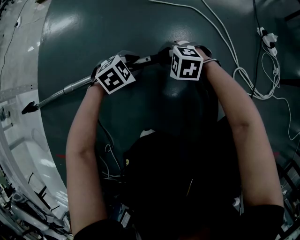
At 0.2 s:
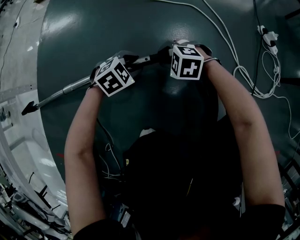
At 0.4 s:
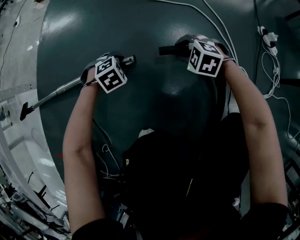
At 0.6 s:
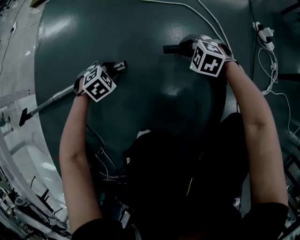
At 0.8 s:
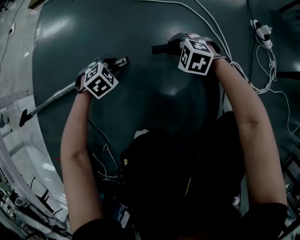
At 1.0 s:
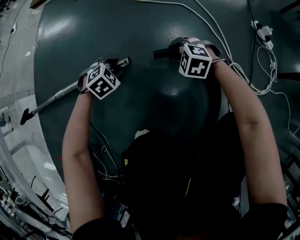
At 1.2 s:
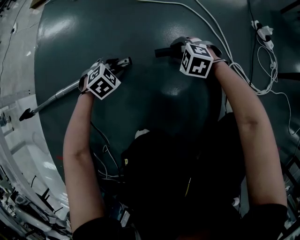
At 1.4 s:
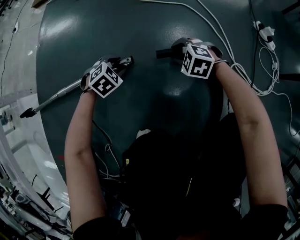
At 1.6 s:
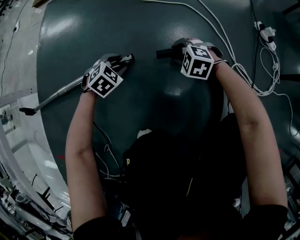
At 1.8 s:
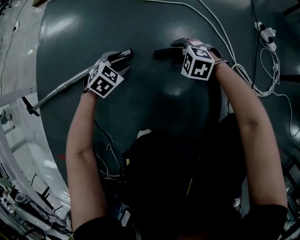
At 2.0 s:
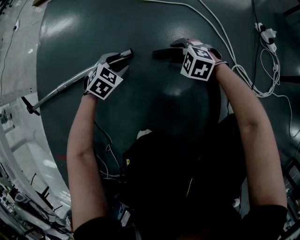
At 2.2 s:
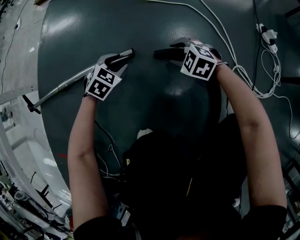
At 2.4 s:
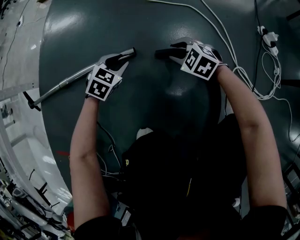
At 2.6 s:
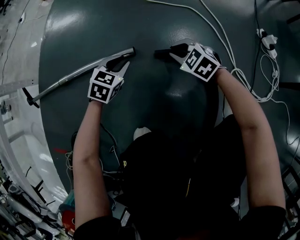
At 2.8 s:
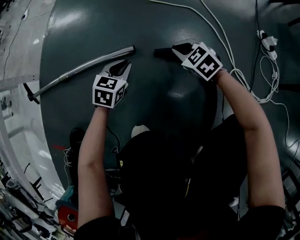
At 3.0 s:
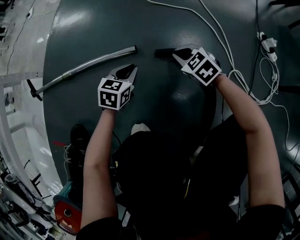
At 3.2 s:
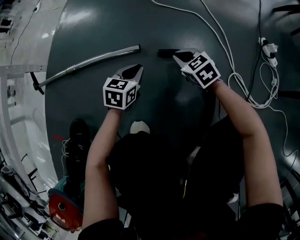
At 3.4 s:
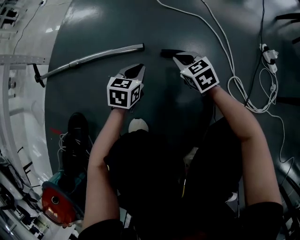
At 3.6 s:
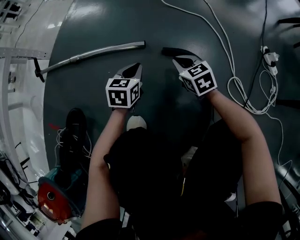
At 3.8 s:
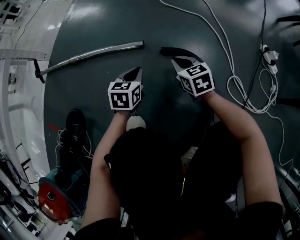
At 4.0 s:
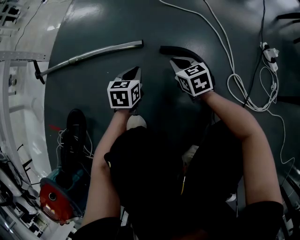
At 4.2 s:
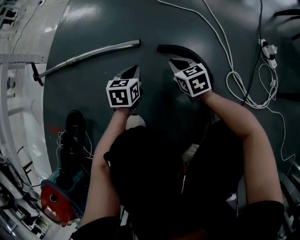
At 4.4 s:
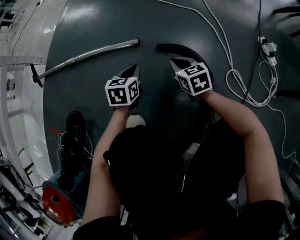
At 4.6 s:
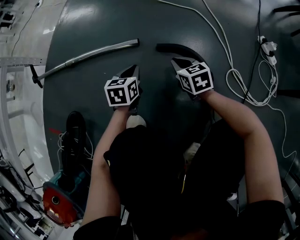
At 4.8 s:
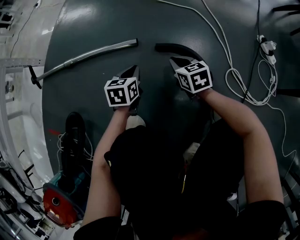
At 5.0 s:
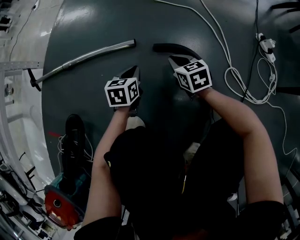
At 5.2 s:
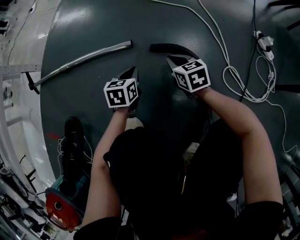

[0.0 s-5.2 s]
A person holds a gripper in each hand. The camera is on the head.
0.0 to 1.8 s: The right gripper changes place by some 10 cm, and opens its fingers.
1.8 to 3.4 s: The right gripper is displaced upward by roughly 10 cm, changes its angle by approximately 40 degrees, and closes. Meanwhile the left gripper moves backward and upward, roughly 10 cm, rolls counterclockwise, seen from behind, by approximately 50 degrees, and closes its fingers.
3.4 to 5.2 s: There are only small adjustments of the grippers.

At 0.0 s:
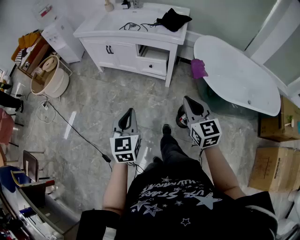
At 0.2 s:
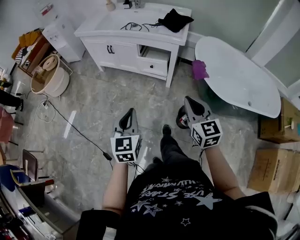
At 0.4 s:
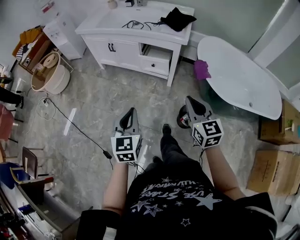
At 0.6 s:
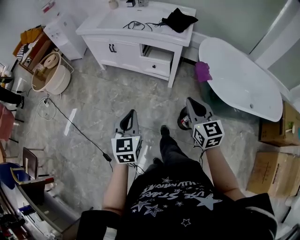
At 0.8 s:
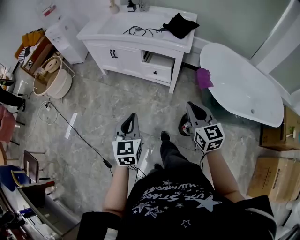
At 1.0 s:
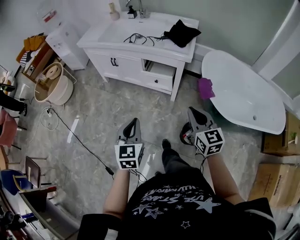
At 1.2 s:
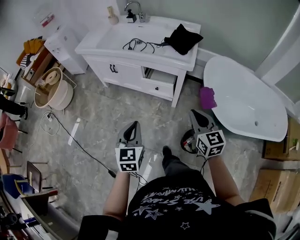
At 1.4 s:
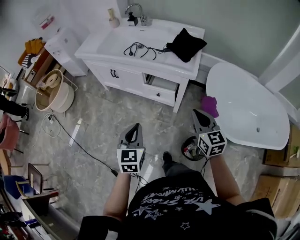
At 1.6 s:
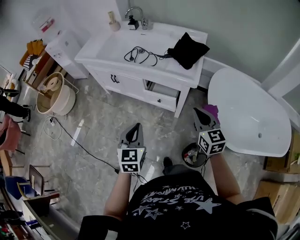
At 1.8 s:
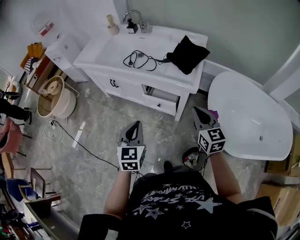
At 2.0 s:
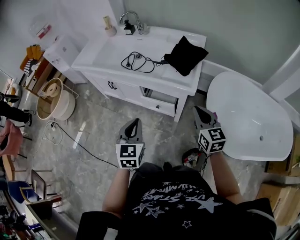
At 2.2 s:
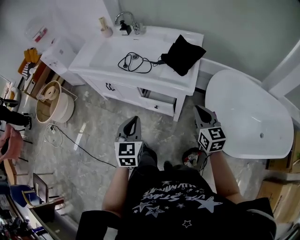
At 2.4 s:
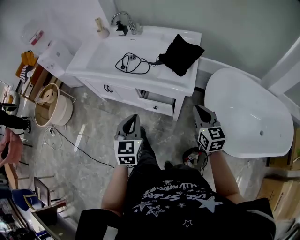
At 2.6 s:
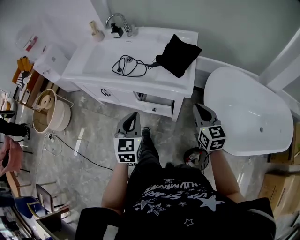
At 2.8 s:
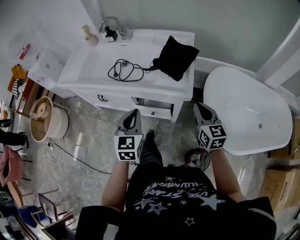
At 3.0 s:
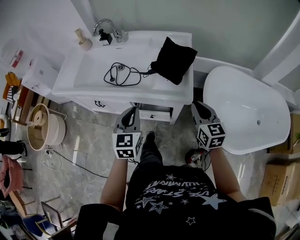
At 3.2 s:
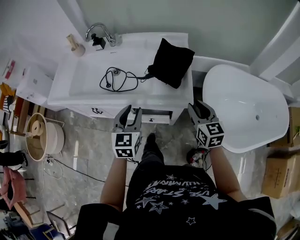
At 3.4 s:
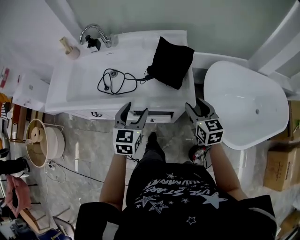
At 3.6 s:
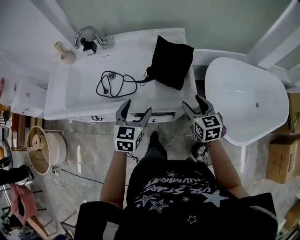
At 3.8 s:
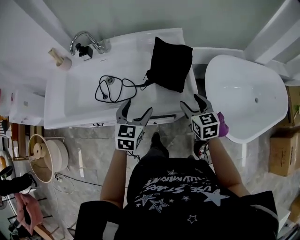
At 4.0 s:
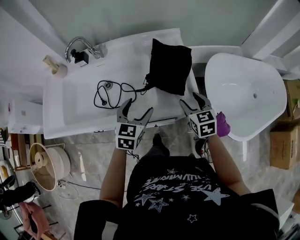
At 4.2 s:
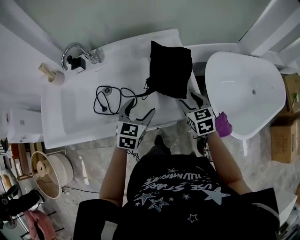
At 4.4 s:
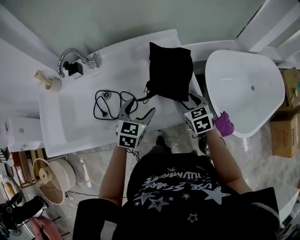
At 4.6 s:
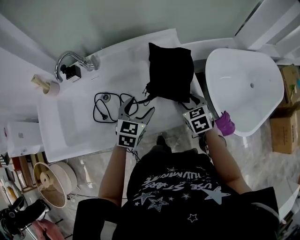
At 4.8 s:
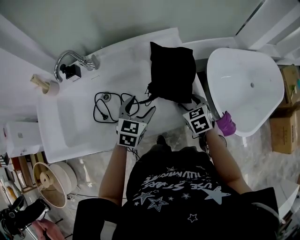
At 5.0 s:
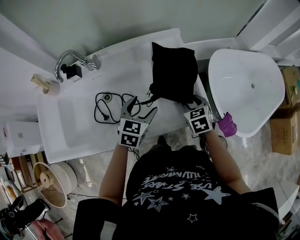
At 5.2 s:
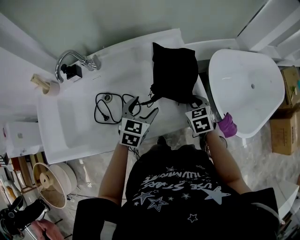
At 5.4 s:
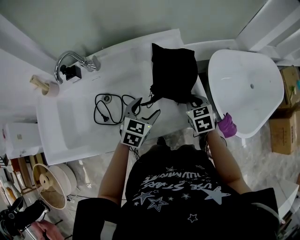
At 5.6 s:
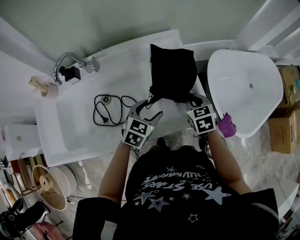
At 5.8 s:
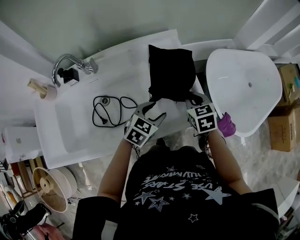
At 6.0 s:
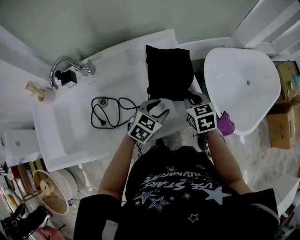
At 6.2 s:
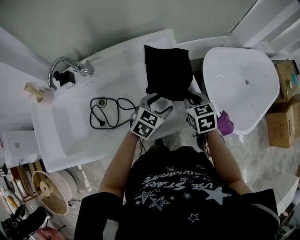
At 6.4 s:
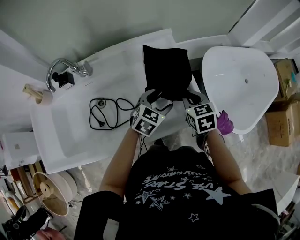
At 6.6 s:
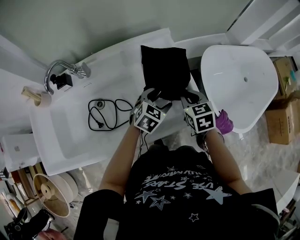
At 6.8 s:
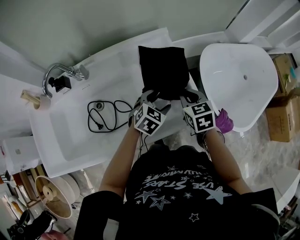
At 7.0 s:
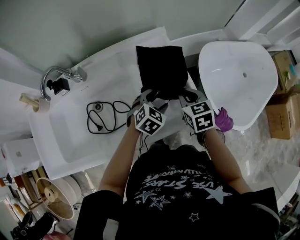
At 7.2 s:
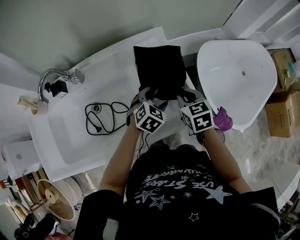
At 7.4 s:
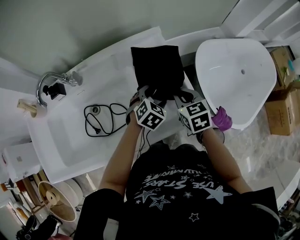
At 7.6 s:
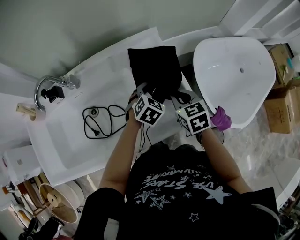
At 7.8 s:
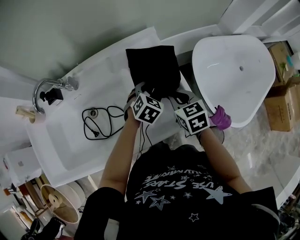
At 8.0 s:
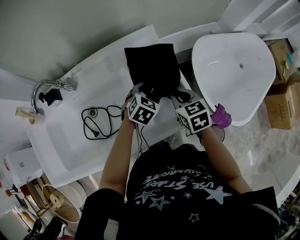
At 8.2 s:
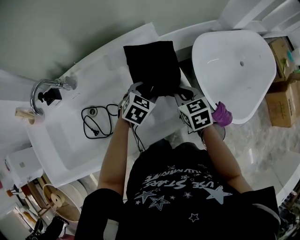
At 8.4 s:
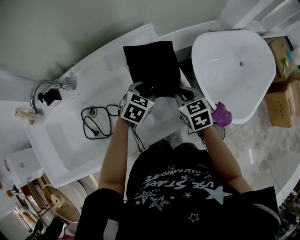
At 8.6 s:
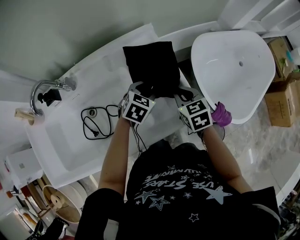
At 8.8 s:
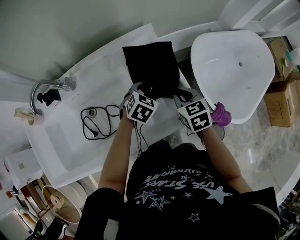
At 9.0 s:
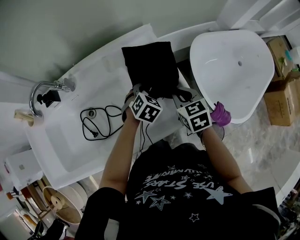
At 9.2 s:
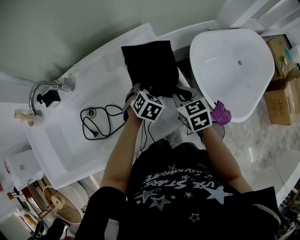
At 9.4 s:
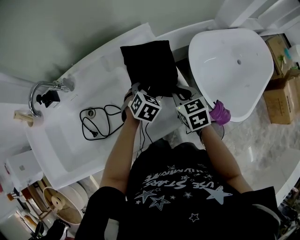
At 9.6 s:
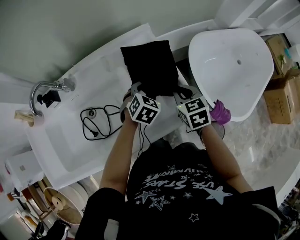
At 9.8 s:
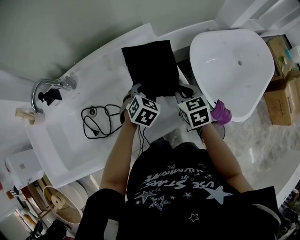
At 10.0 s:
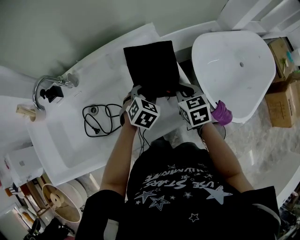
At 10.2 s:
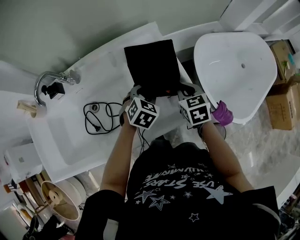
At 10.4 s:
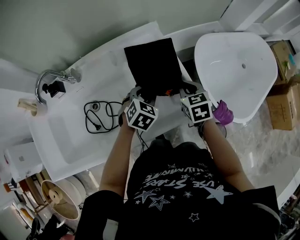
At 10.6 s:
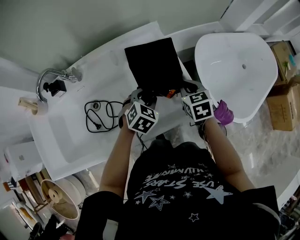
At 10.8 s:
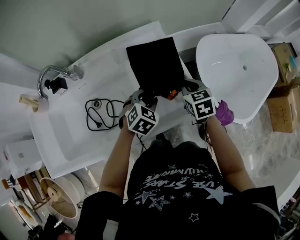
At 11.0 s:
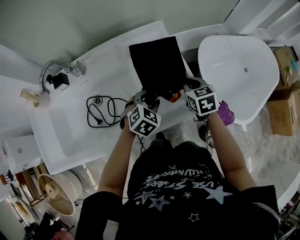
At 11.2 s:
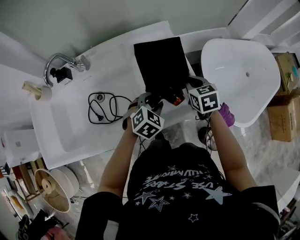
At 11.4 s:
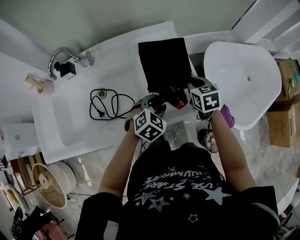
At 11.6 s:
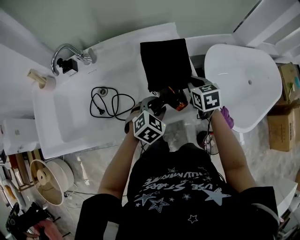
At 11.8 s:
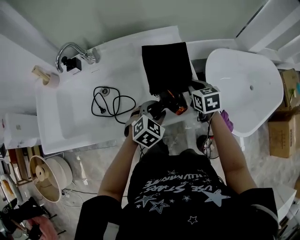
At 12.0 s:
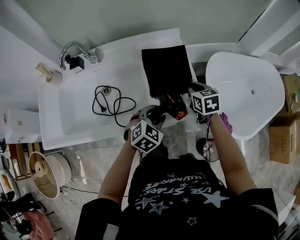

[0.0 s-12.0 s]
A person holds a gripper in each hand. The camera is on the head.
0.0 to 1.6 s: Both grippers move forward, approximately 30 cm.
1.6 to 3.0 s: The left gripper travels forward by roughly 25 cm. Meanwhile the right gripper travels forward by some 15 cm.
3.0 to 4.4 s: The right gripper changes place by roughly 20 cm, swivels about 30 degrees, and opens up, while the left gripper moves roughly 25 cm, changes its angle by some 40 degrees, and opens up.
4.4 to 6.0 s: The left gripper moves to the right, some 10 cm, rotates approximately 30 degrees, and closes its fingers. Meanwhile the right gripper closes its fingers.
6.0 to 7.6 s: The left gripper shifts some 10 cm forward, and opens up.
7.6 to 9.0 s: The left gripper closes its fingers.
9.0 to 10.4 s: The left gripper shifts by roughly 5 cm.
10.4 to 12.0 s: The left gripper travels backward by some 10 cm.

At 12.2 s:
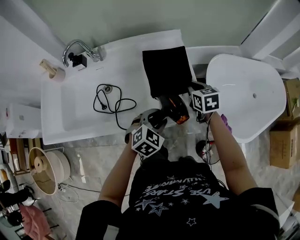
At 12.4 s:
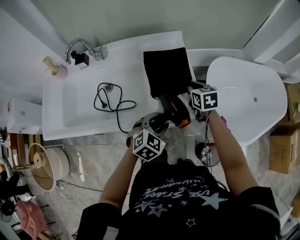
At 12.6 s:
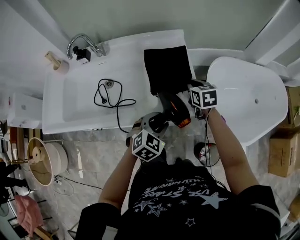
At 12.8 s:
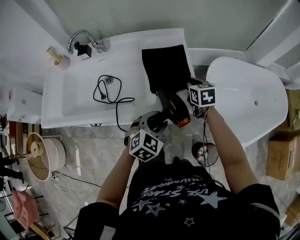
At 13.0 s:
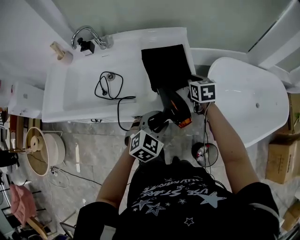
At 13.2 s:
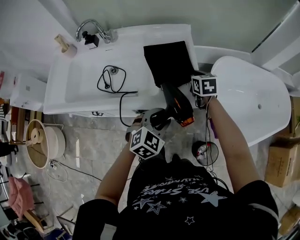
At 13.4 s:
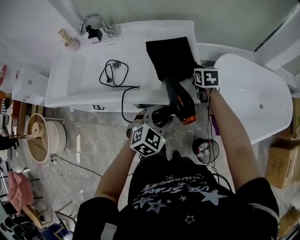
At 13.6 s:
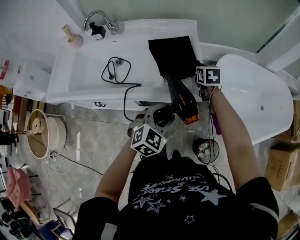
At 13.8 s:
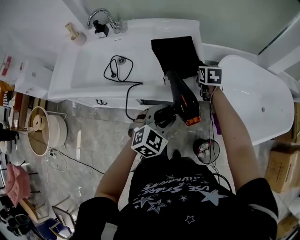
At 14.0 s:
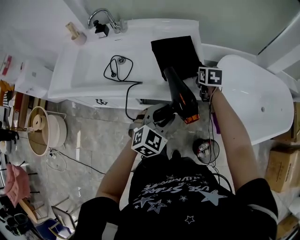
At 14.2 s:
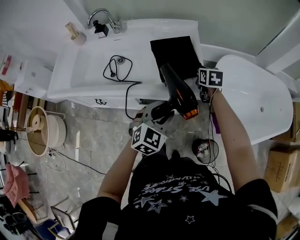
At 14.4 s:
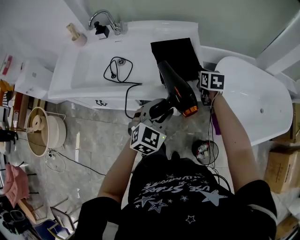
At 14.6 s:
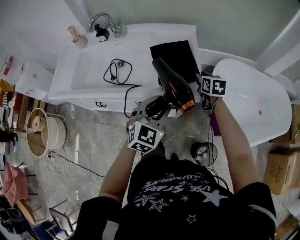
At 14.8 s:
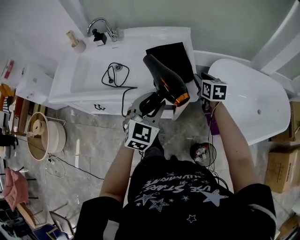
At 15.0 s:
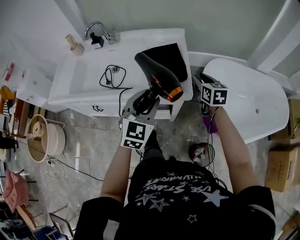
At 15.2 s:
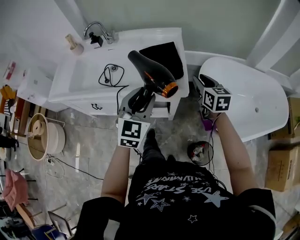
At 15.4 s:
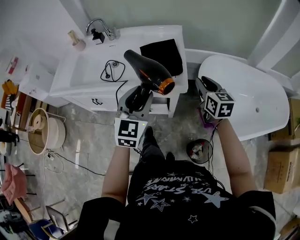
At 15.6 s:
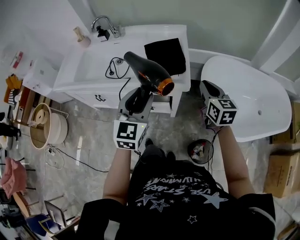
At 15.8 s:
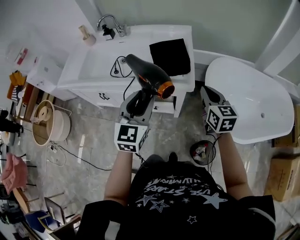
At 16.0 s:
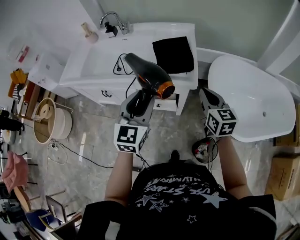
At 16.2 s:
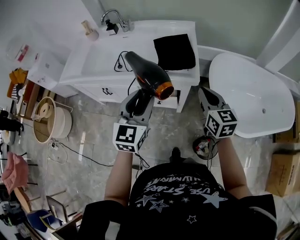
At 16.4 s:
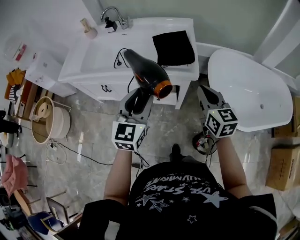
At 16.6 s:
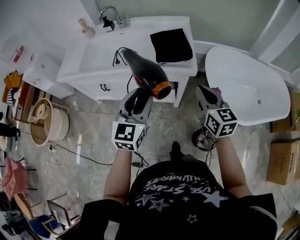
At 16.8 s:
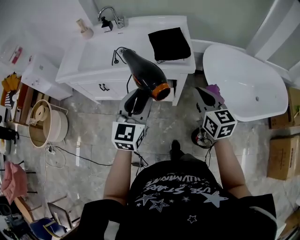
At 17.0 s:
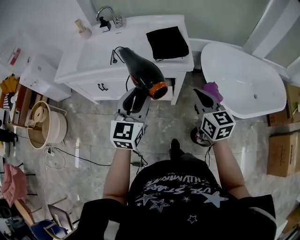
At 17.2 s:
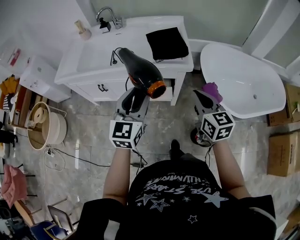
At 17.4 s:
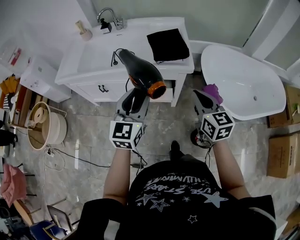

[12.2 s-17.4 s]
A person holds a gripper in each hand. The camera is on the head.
12.2 to 14.0 s: The left gripper shifts about 10 cm backward and to the right.
14.0 to 15.6 s: The right gripper goes some 20 cm backward, upward and to the right, turns by roughly 30 degrees, and opens, then closes again. The left gripper heads upward, covering roughly 10 cm, and changes its angle by about 30 degrees.
15.6 to 17.4 s: The left gripper moves backward and to the left, approximately 15 cm, while the right gripper heads backward and to the left, covering approximately 20 cm.

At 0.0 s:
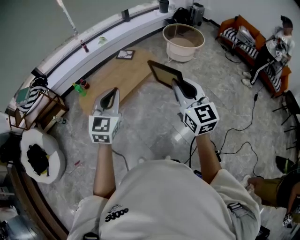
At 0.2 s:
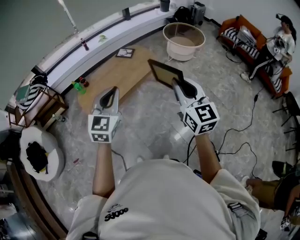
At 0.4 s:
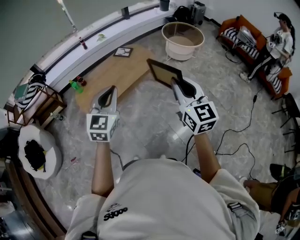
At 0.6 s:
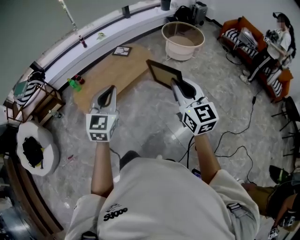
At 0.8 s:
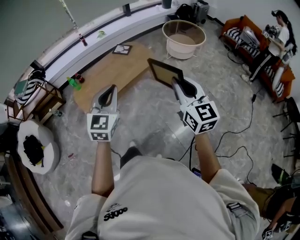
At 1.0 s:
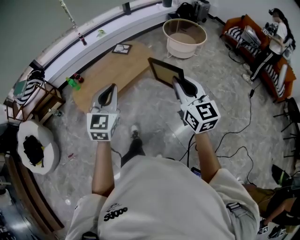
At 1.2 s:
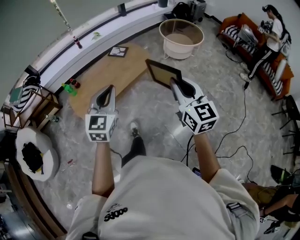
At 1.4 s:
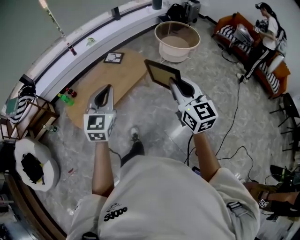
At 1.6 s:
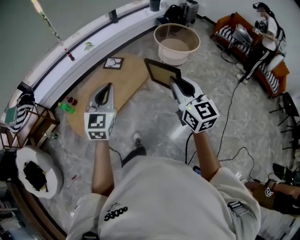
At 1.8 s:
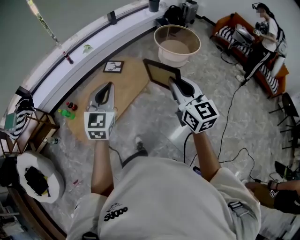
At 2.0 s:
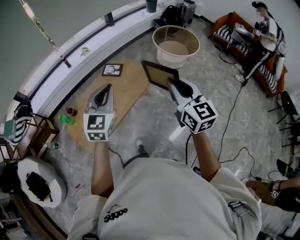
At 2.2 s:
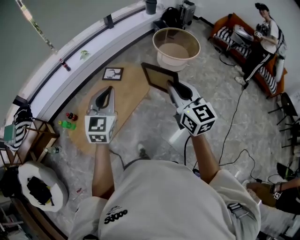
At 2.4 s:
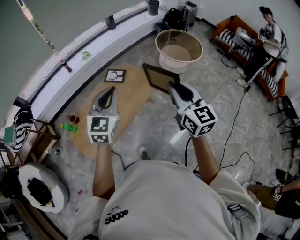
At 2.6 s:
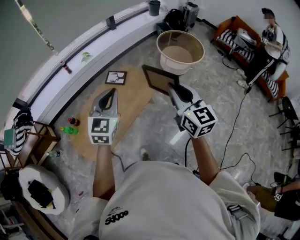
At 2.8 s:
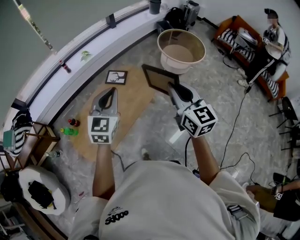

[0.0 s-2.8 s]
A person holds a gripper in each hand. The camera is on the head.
0.0 to 1.4 s: The two grippers go approximately 15 cm forward and to the right.
1.4 to 2.8 s: The two grippers go some 25 cm forward.
